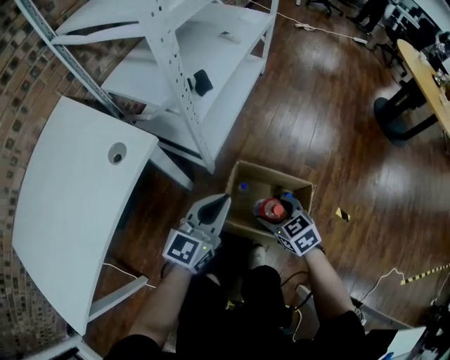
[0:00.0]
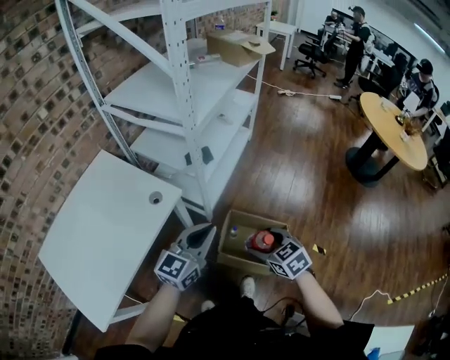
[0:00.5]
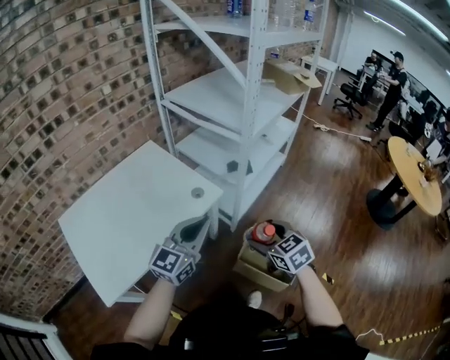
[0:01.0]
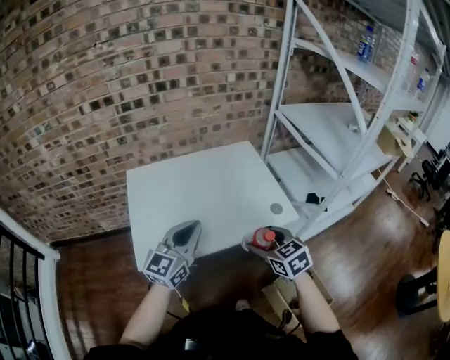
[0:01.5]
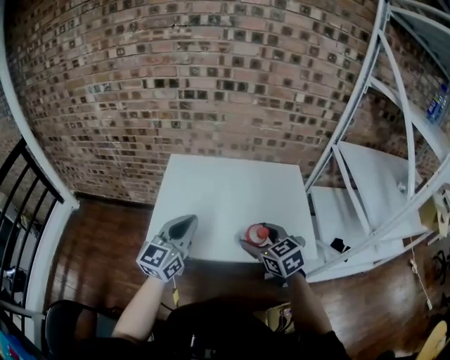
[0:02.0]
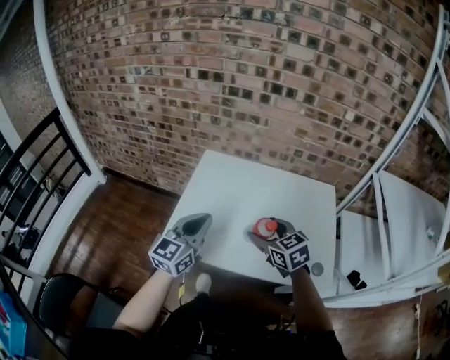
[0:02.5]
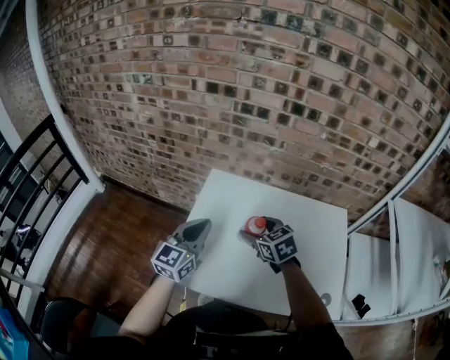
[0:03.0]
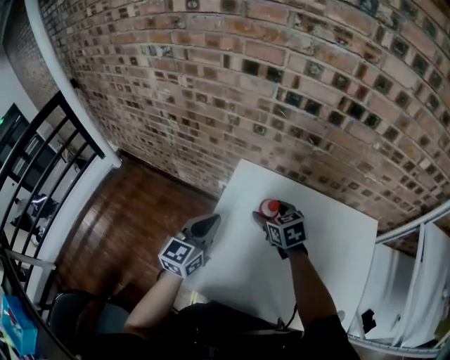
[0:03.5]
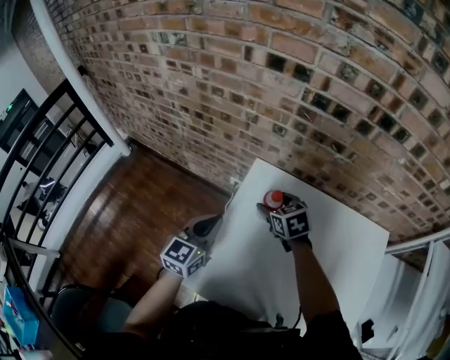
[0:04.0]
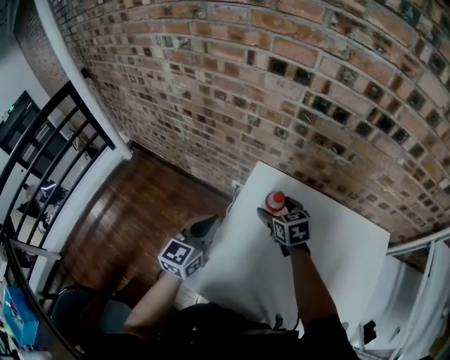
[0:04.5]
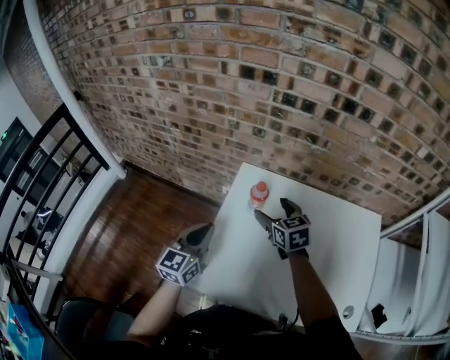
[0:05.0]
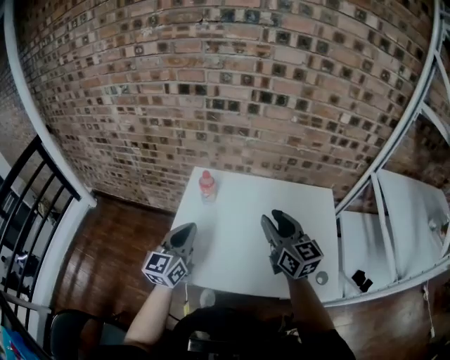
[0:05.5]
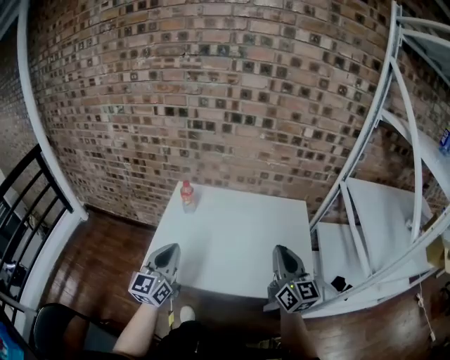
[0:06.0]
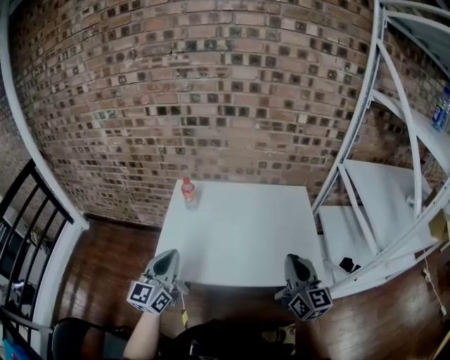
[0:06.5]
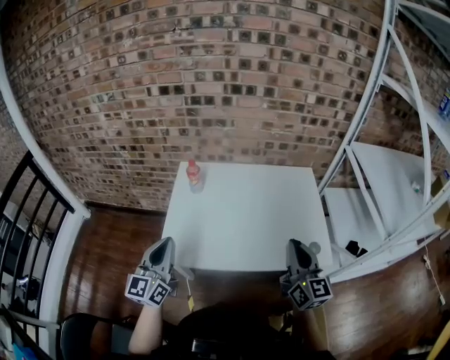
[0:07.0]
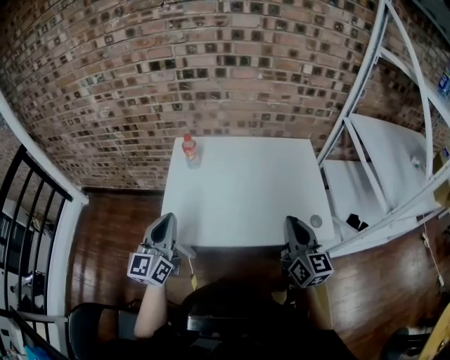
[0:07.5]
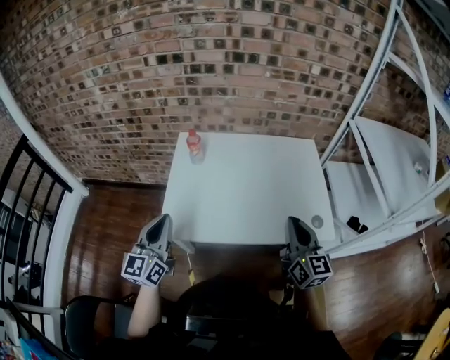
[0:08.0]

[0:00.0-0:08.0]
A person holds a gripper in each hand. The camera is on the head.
0:00.0 to 0:02.0: Both grippers are carried some 50 cm. The right gripper rotates some 60 degrees; the left gripper turns by some 70 degrees.
0:02.0 to 0:04.0: The right gripper moves forward, about 50 cm. The left gripper goes approximately 35 cm forward, to the left and downward, and turns by some 20 degrees.
0:04.0 to 0:06.0: The right gripper heads backward, to the right and upward, covering approximately 60 cm, tips its fingers upward by about 50 degrees, and closes up, while the left gripper travels backward and upward by some 30 cm.
0:06.0 to 0:08.0: The right gripper goes about 10 cm downward and backward, while the left gripper heads to the left, covering about 10 cm.

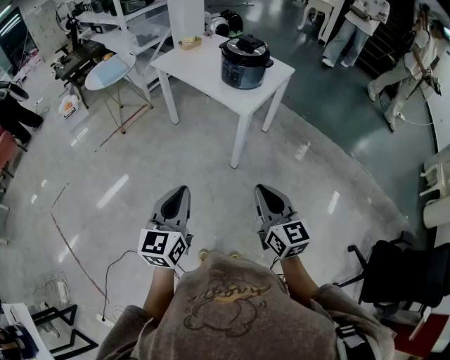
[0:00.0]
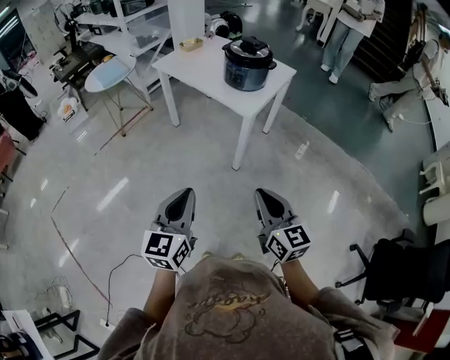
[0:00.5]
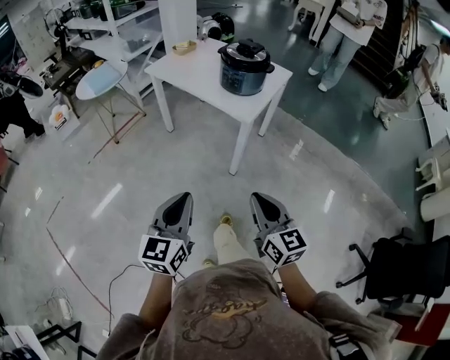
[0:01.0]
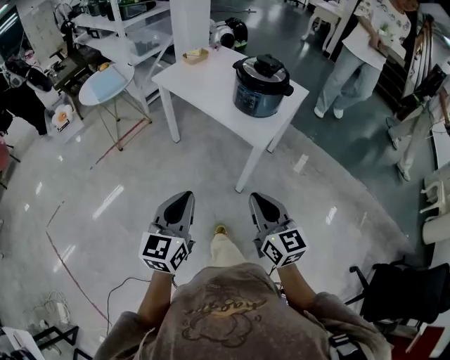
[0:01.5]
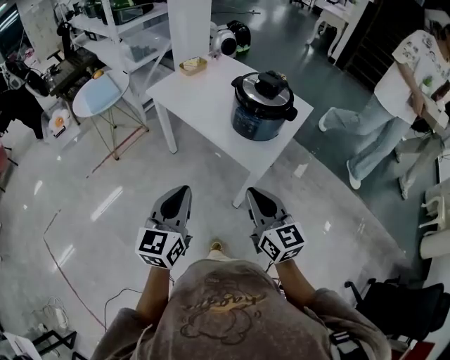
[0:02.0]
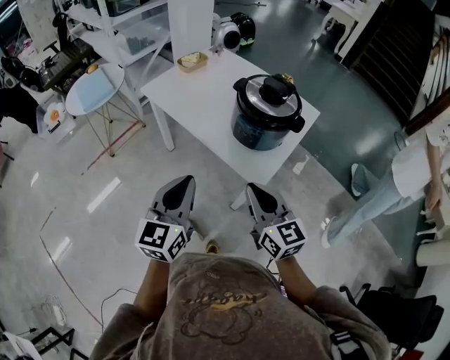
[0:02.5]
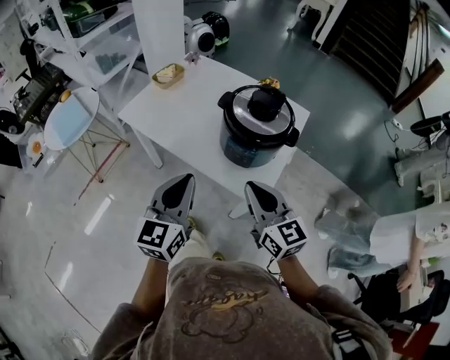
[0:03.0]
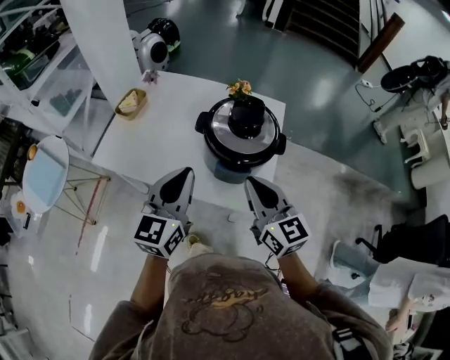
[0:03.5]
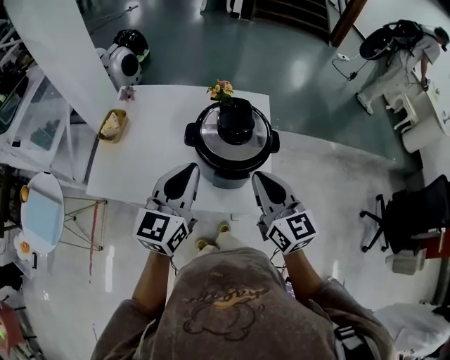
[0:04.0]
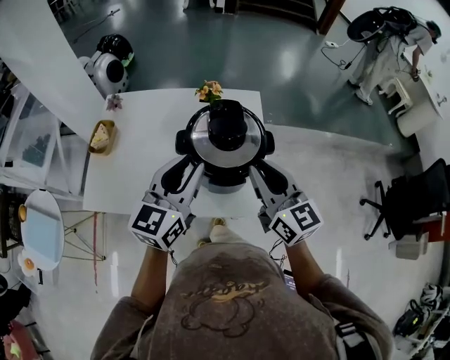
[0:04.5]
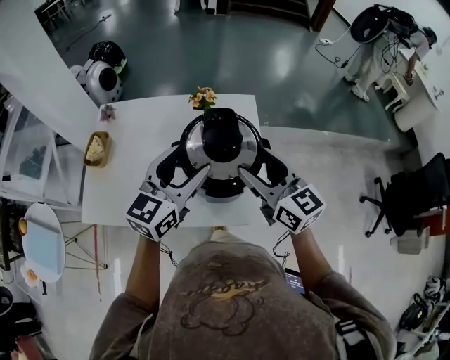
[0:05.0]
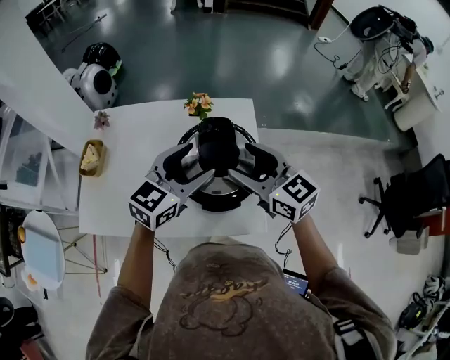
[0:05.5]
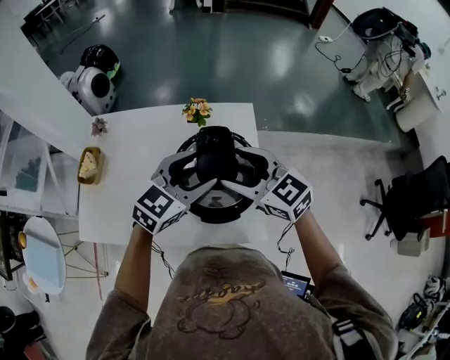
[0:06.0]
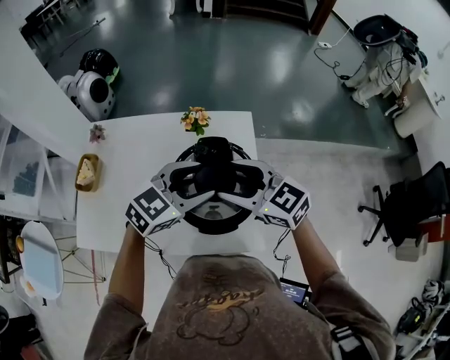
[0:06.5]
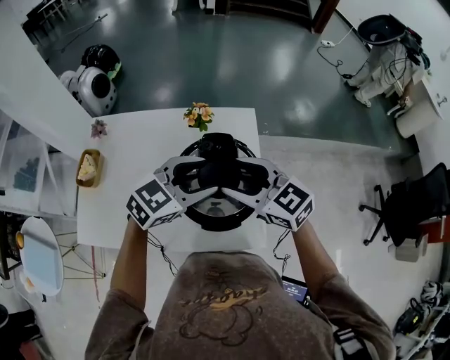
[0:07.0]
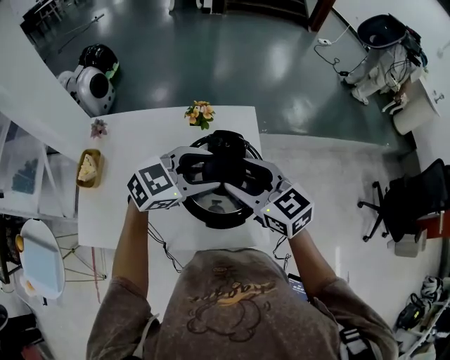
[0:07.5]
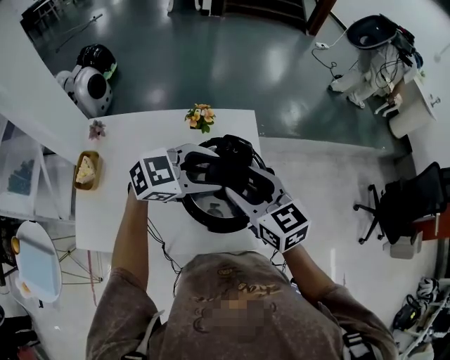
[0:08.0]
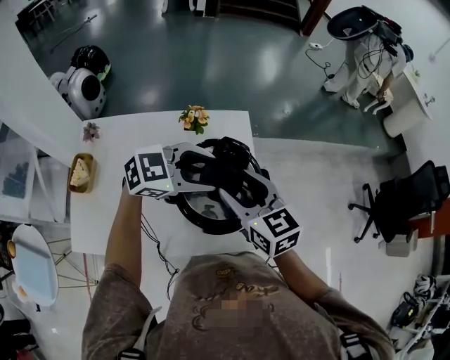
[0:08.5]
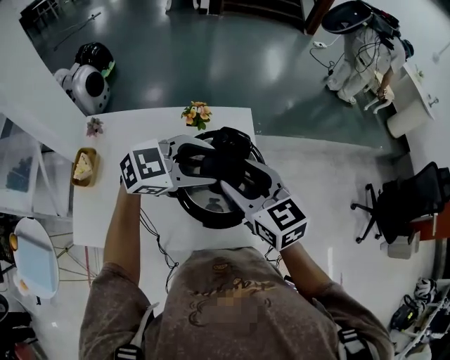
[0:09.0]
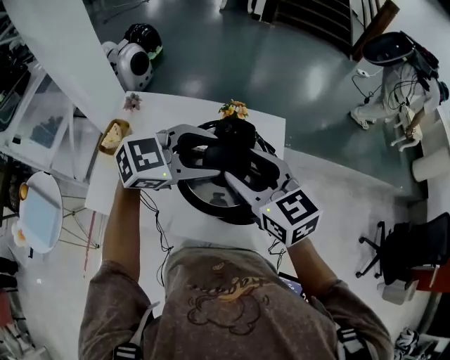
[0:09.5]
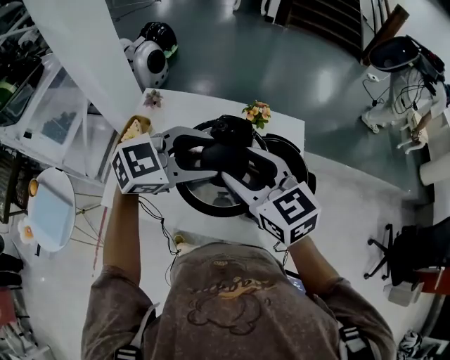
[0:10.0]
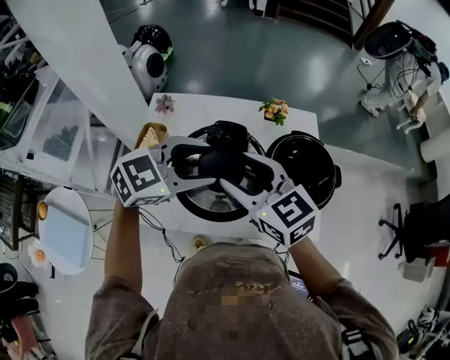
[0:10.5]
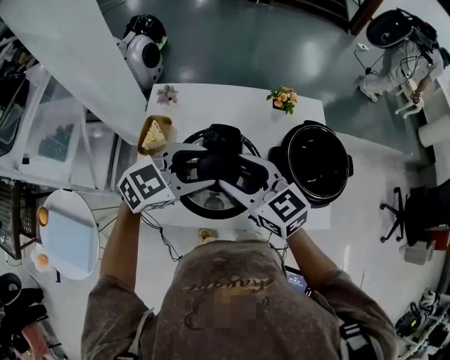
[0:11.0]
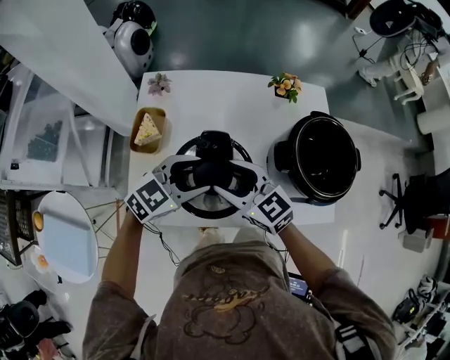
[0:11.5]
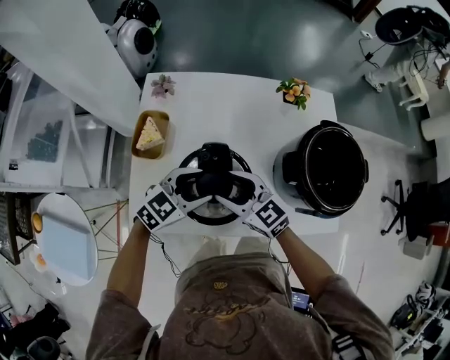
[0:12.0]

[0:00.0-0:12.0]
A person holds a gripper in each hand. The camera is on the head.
0:00.0 to 0:02.0: Both grippers move forward, about 30 cm.
0:02.0 to 0:04.0: The right gripper ends up about 30 cm from where it was, and swivels roughly 30 degrees. Meanwhile the left gripper changes place by about 40 cm, and turns by approximately 40 degrees.
0:04.0 to 0:06.0: The right gripper shifts roughly 15 cm forward, rotates roughly 30 degrees, and opens; the left gripper shifts approximately 15 cm forward and to the right, rotates approximately 40 degrees, and opens.
0:06.0 to 0:08.0: The right gripper turns by approximately 20 degrees. The left gripper changes its angle by some 30 degrees.
0:08.0 to 0:10.0: The two grippers go approximately 15 cm to the left, backward and upward.
0:10.0 to 0:12.0: Both grippers move downward and to the left, about 25 cm.

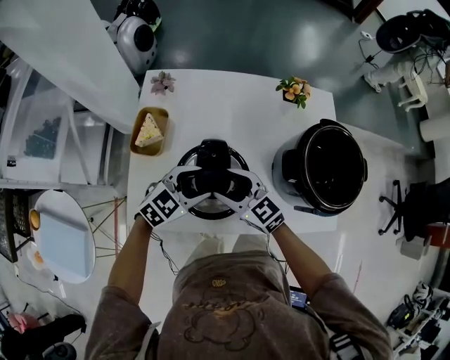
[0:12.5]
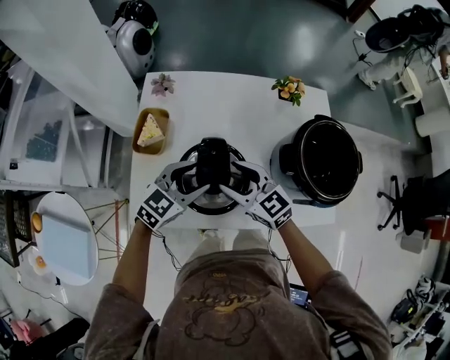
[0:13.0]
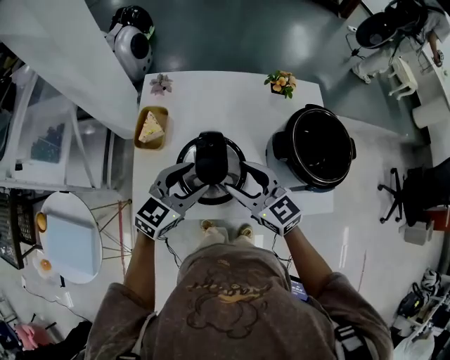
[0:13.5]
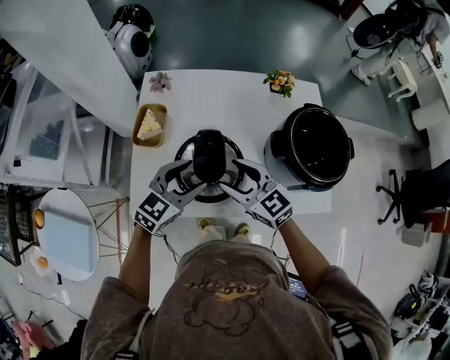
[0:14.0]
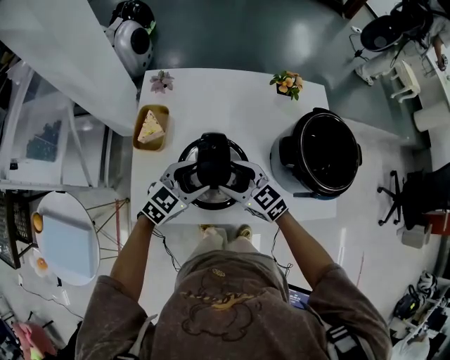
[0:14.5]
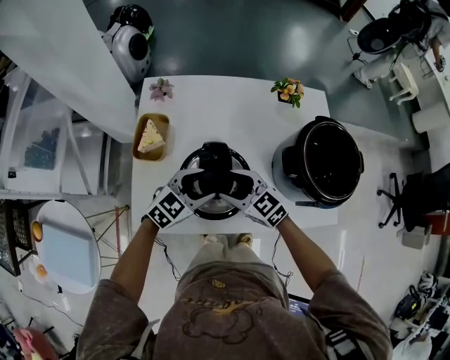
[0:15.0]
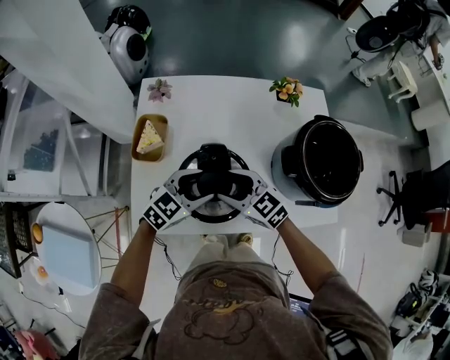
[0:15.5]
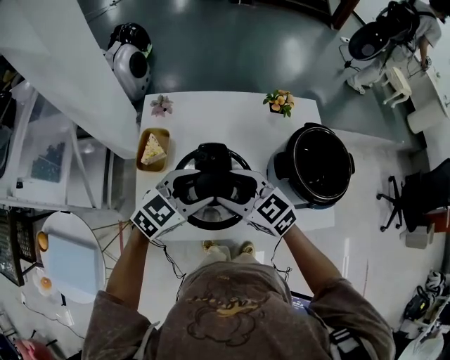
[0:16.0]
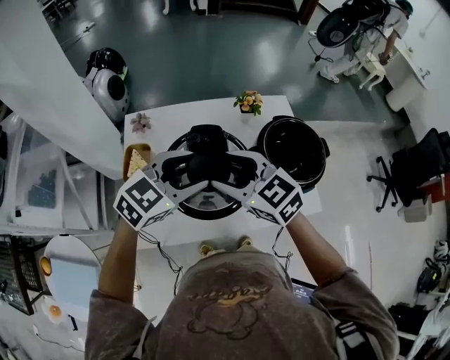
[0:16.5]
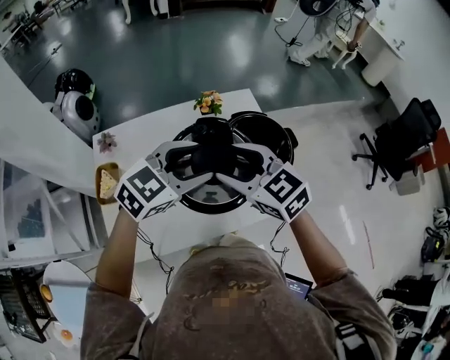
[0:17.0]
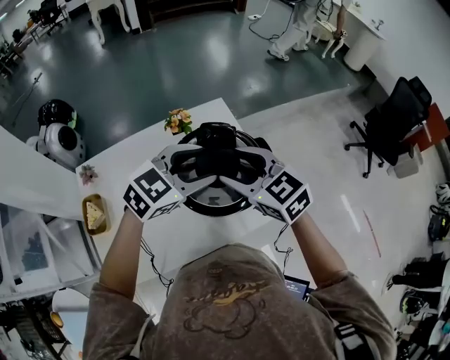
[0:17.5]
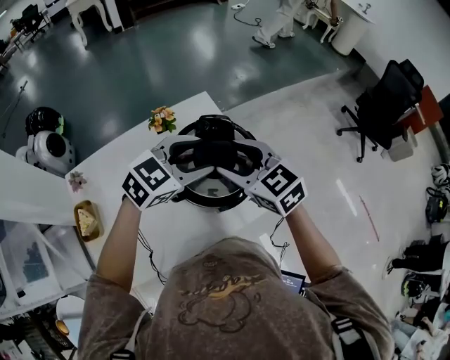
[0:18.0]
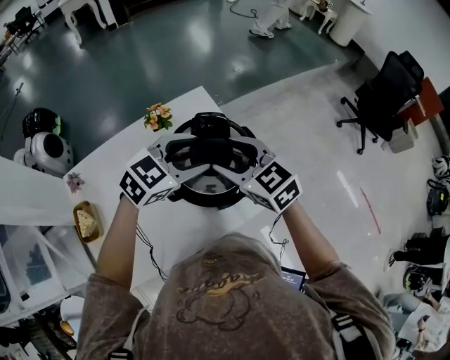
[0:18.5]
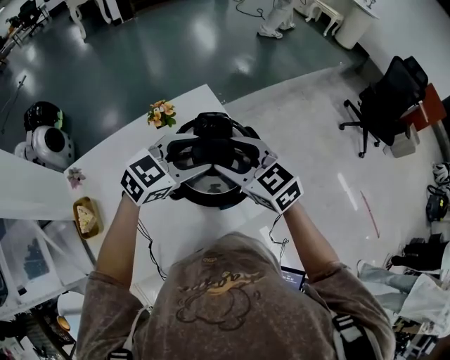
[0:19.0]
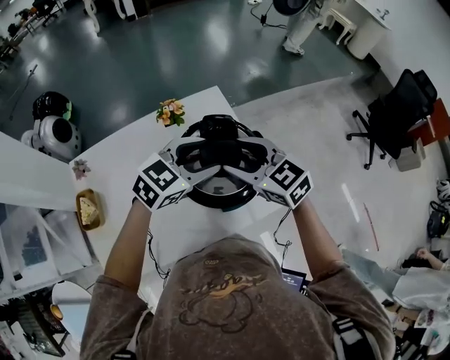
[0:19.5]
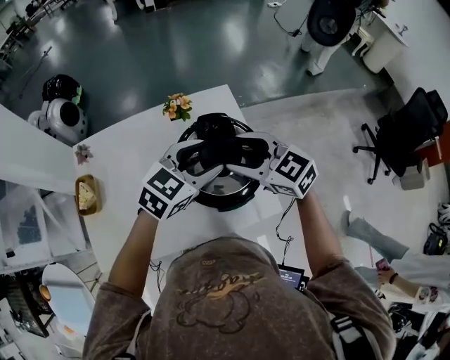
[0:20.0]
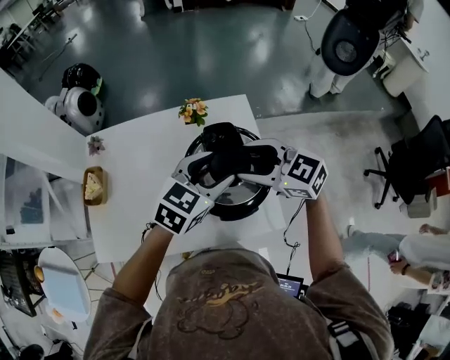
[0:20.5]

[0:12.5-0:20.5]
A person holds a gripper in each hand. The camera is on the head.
0:12.5 to 0:14.5: The left gripper reaches roughly 10 cm upward, then returns. The right gripper travels upward and back again, roughly 10 cm each way.
0:14.5 to 0:16.5: Both grippers move upward, roughly 20 cm.
0:16.5 to 0:18.5: The left gripper shifts by approximately 30 cm, and turns by approximately 20 degrees. The right gripper changes place by roughly 30 cm, and rotates approximately 30 degrees.
0:18.5 to 0:20.5: The left gripper swivels roughly 40 degrees. Meanwhile the right gripper turns by some 40 degrees.
